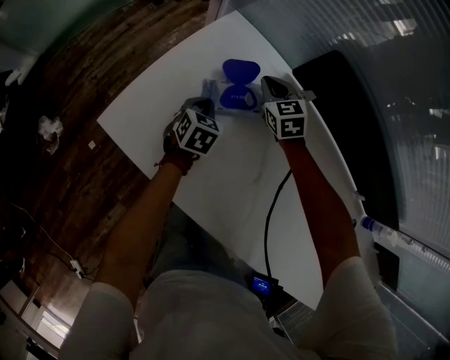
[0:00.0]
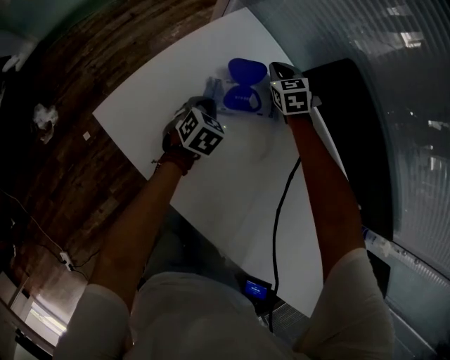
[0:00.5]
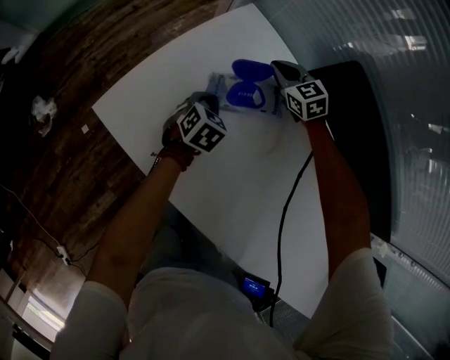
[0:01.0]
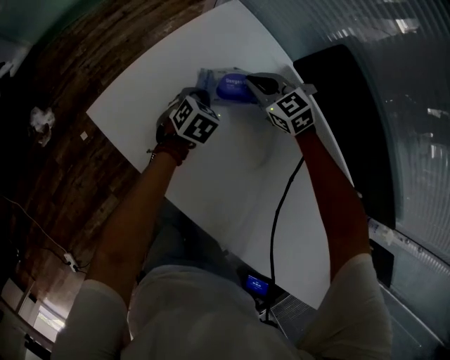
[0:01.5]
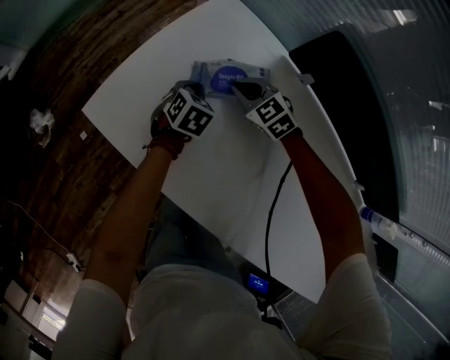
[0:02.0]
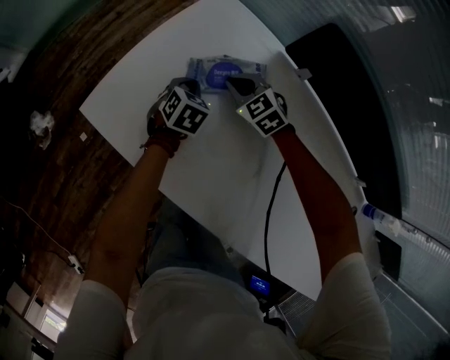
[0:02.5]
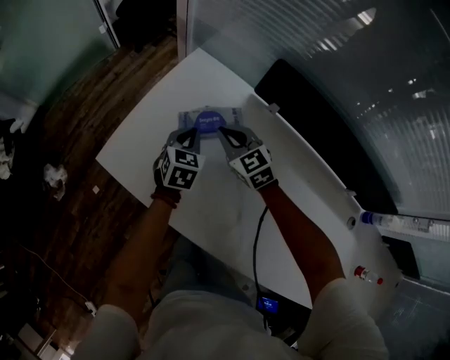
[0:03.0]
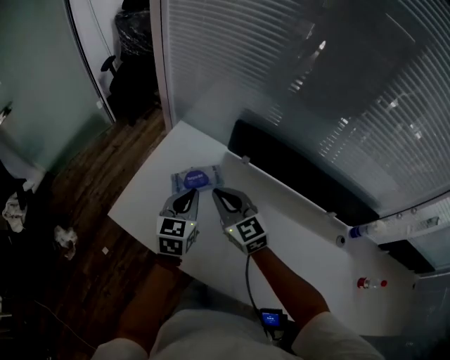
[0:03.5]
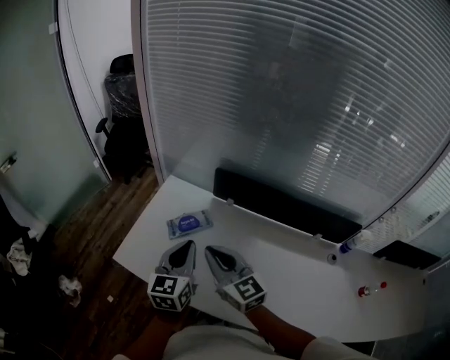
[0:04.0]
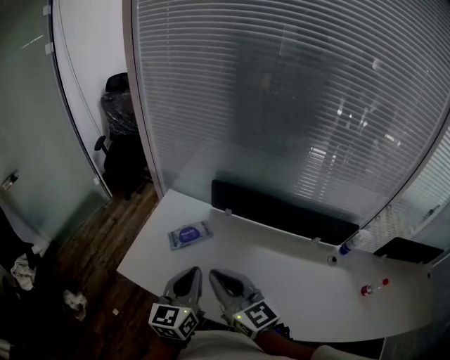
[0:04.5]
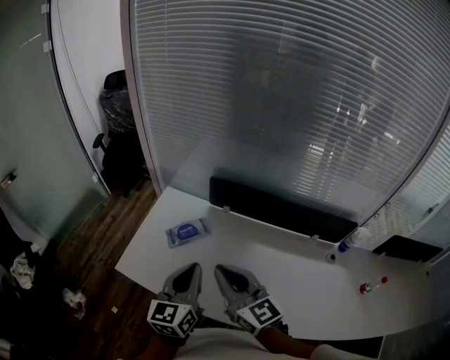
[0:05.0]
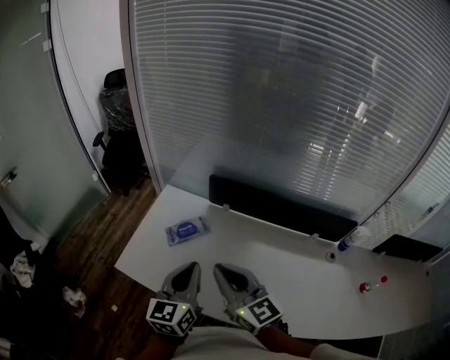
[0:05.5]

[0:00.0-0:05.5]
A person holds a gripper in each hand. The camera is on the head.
0:00.0 to 0:02.0: The right gripper shifts roughly 10 cm backward and to the left, and rotates roughly 30 degrees.
0:02.0 to 0:03.5: The right gripper is displaced upward and backward by roughly 30 cm, and changes its angle by some 40 degrees. The left gripper goes some 30 cm upward, and tips its fingers upward by roughly 30 degrees.
0:03.5 to 0:05.5: The two grippers go approximately 25 cm backward and upward. The right gripper rotates some 20 degrees.

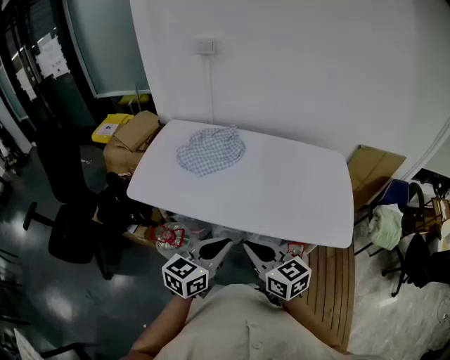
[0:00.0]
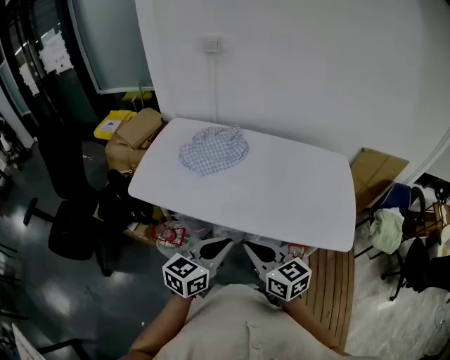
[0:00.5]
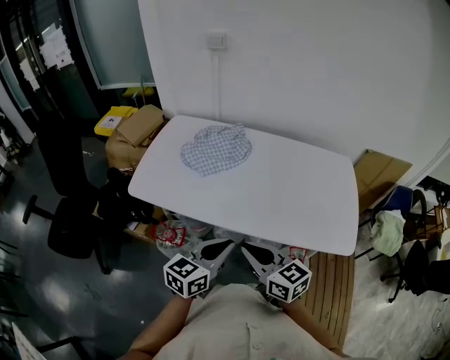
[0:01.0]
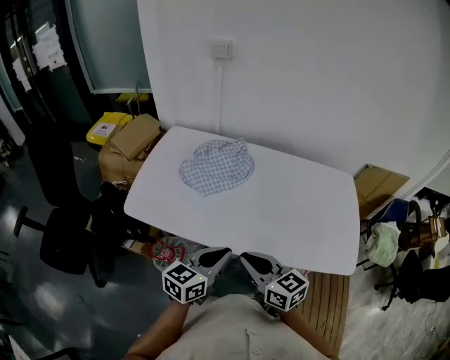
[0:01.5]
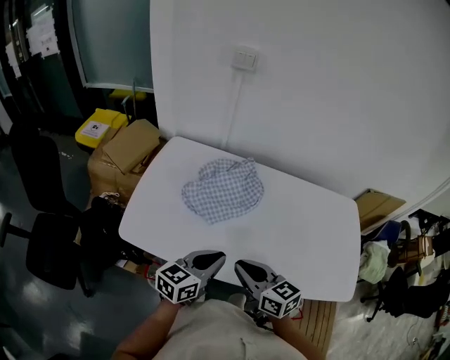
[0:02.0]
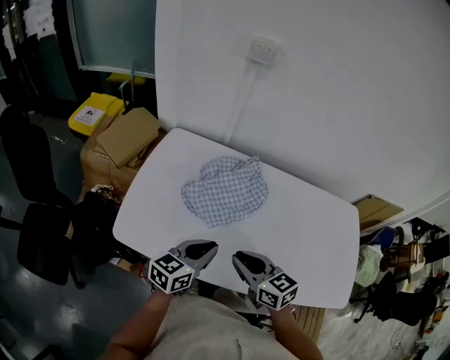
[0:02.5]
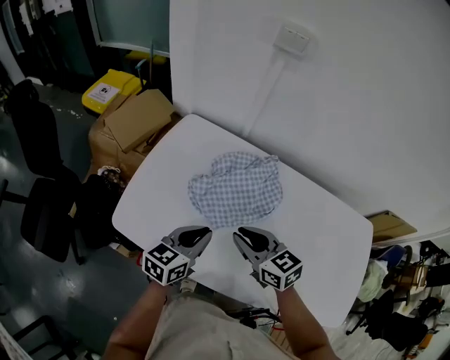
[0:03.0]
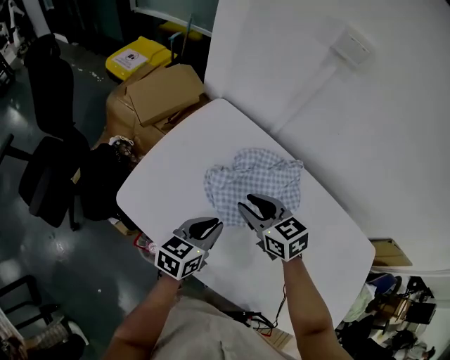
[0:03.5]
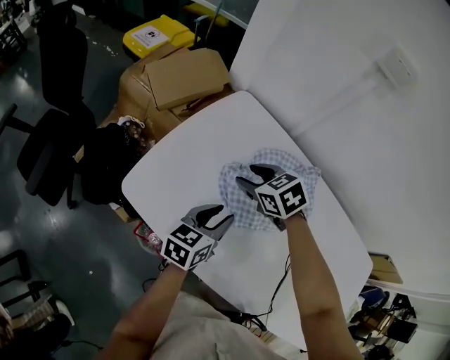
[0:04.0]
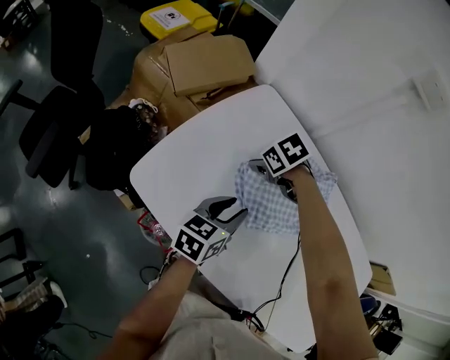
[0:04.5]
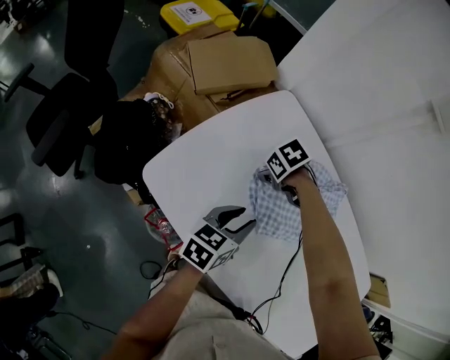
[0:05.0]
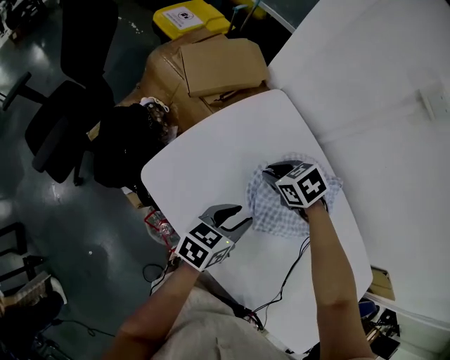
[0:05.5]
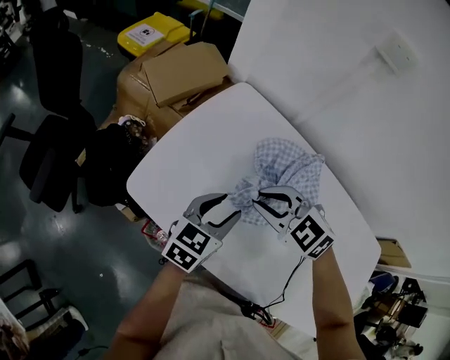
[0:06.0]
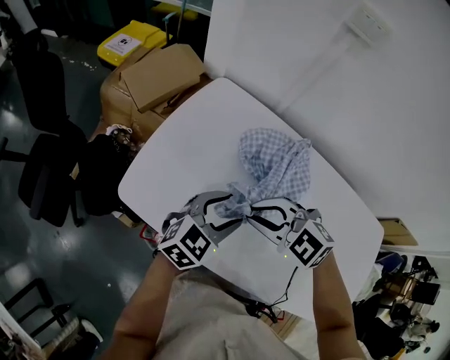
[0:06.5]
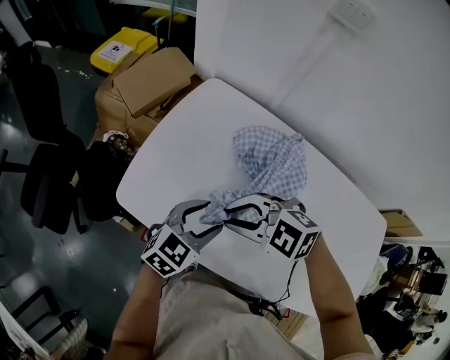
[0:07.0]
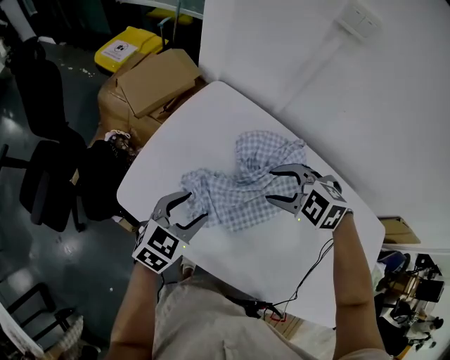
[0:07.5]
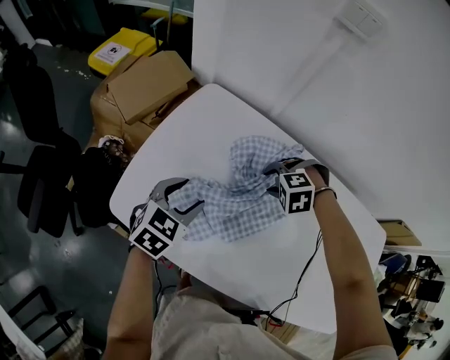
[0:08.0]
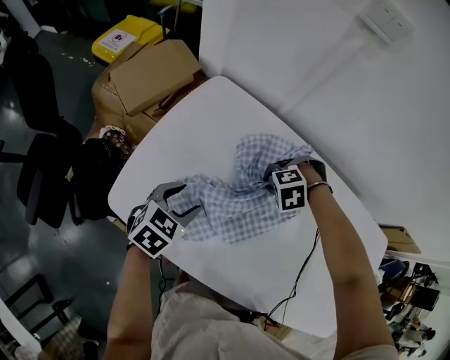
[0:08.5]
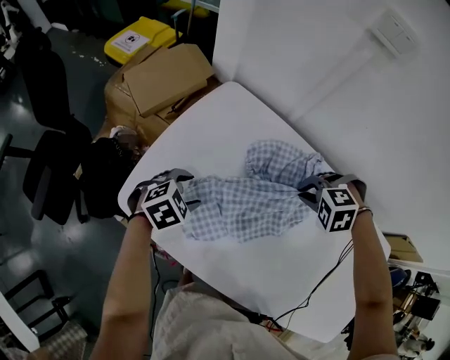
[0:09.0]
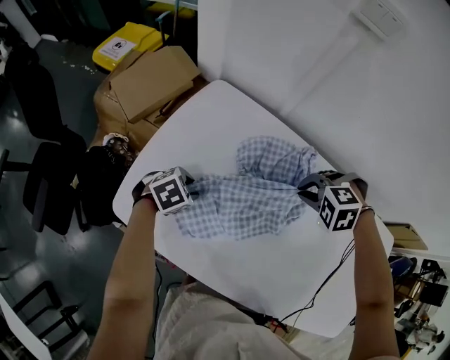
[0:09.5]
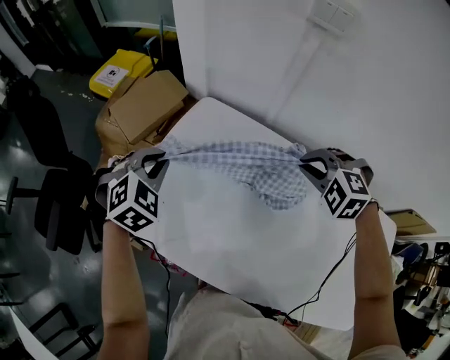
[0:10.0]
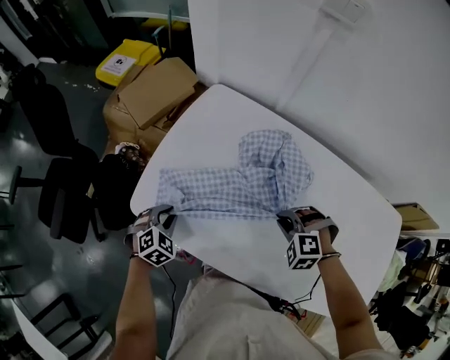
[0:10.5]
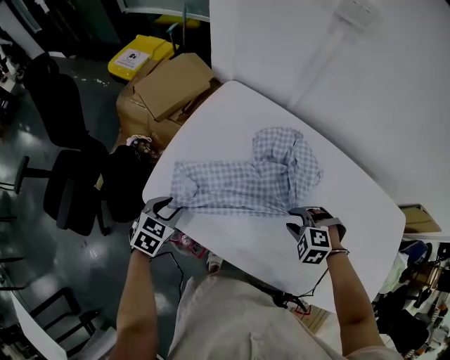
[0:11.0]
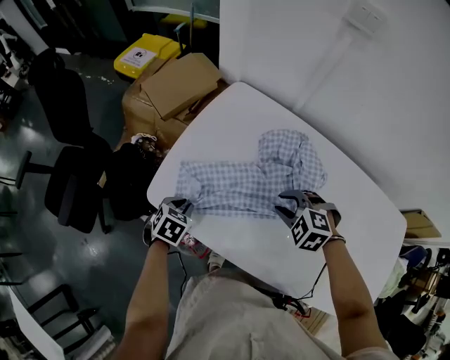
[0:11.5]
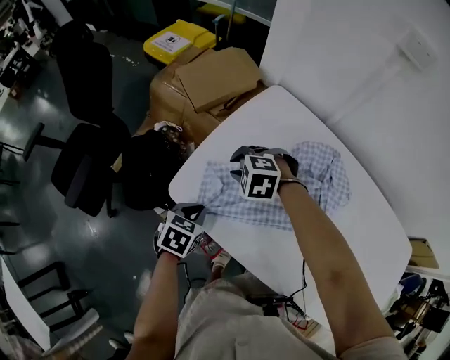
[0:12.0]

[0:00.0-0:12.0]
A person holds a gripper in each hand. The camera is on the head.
0:00.0 to 0:02.0: The grippers both shift forward and to the left by roughly 25 cm.
0:02.0 to 0:04.0: The left gripper shifts by some 25 cm, turns by roughly 30 degrees, and opens, while the right gripper ends up some 40 cm from where it was, tilts its fingers roughly 30 degrees downward, and opens.
0:04.0 to 0:06.0: The right gripper ends up about 10 cm from where it was, rotates approximately 30 degrees, and closes up.
0:06.0 to 0:08.0: The left gripper moves some 5 cm, and rotates roughly 20 degrees. The right gripper shifts by about 20 cm, points its fingers roughly 40 degrees further downward, and opens up.
0:08.0 to 0:10.0: The left gripper moves roughly 15 cm, swivels some 30 degrees, and closes; the right gripper moves upward, about 15 cm, changes its angle by about 30 degrees, and closes its fingers.
0:10.0 to 0:12.0: The right gripper shifts some 35 cm to the left, and changes its angle by approximately 20 degrees; the left gripper moves backward, downward and to the left, approximately 25 cm, rolls counterclockwise, seen from behind, by some 50 degrees, and opens and closes again.

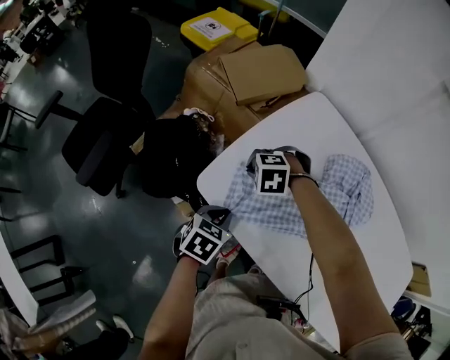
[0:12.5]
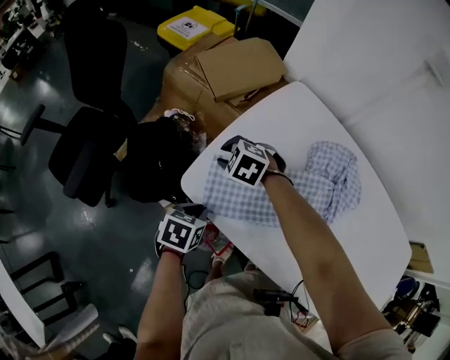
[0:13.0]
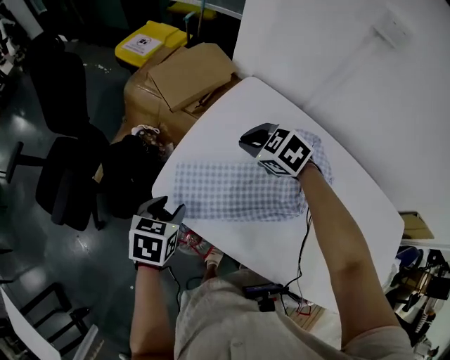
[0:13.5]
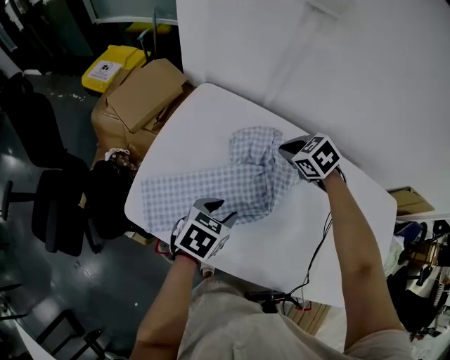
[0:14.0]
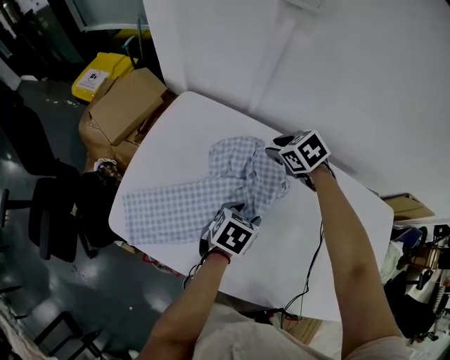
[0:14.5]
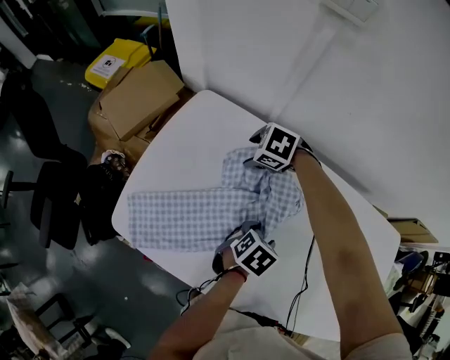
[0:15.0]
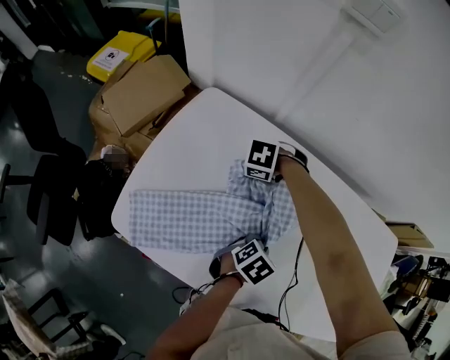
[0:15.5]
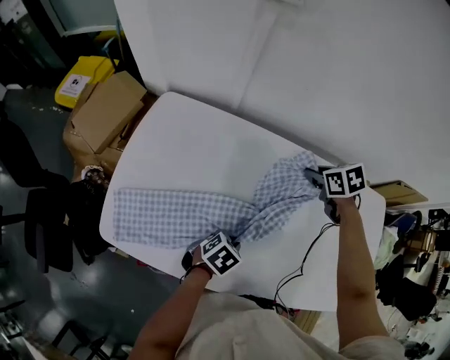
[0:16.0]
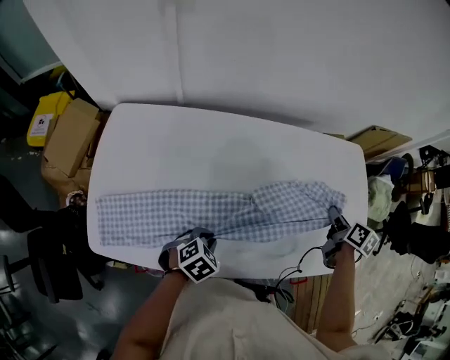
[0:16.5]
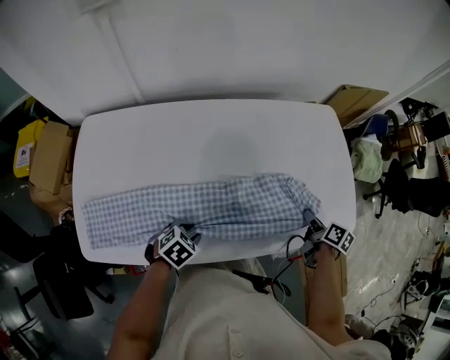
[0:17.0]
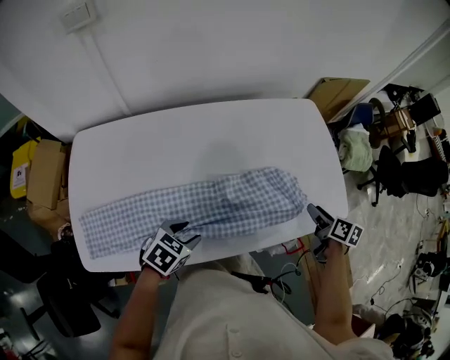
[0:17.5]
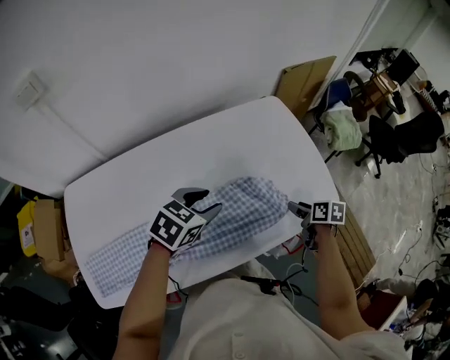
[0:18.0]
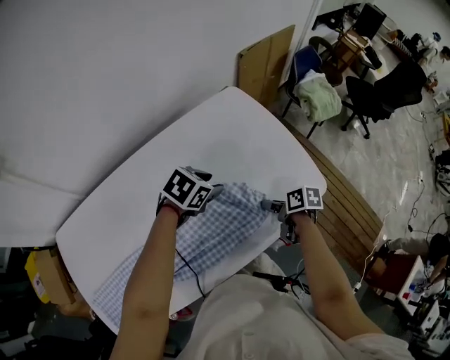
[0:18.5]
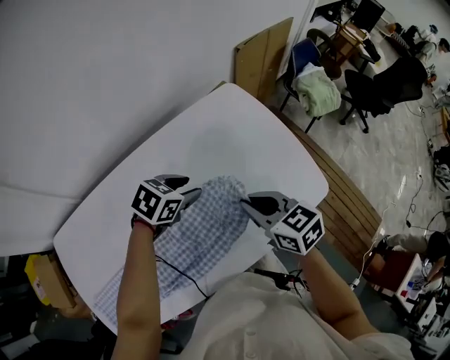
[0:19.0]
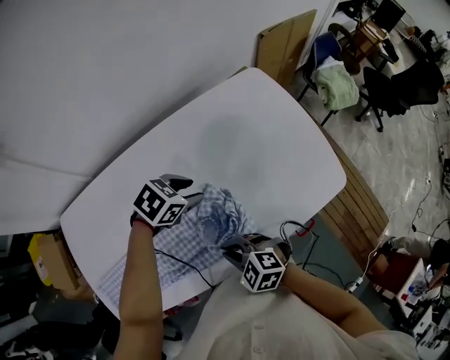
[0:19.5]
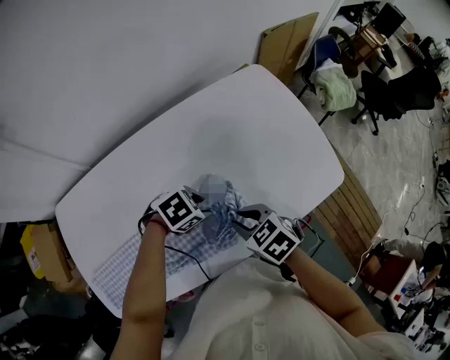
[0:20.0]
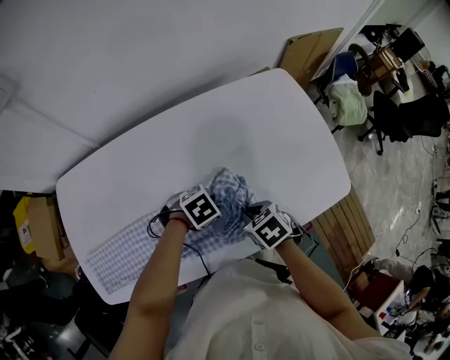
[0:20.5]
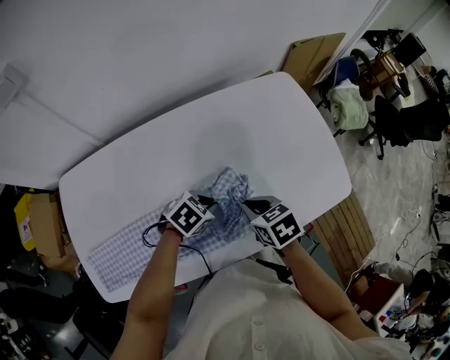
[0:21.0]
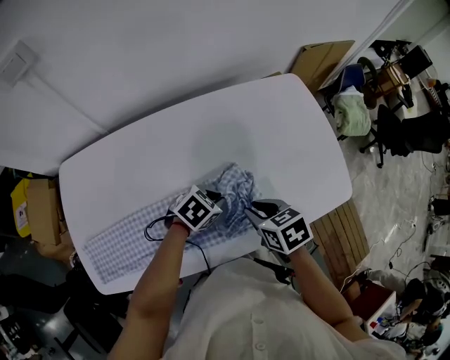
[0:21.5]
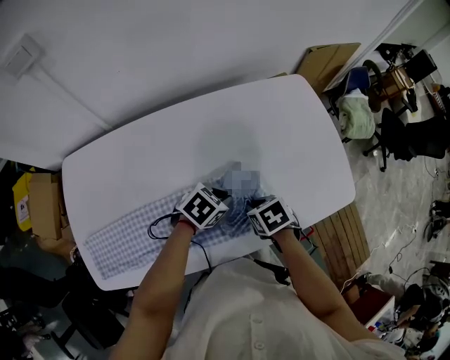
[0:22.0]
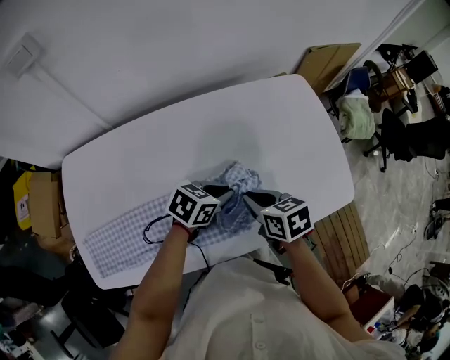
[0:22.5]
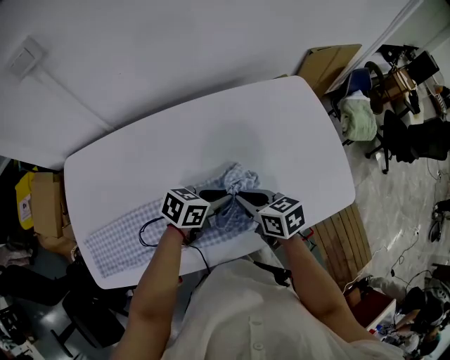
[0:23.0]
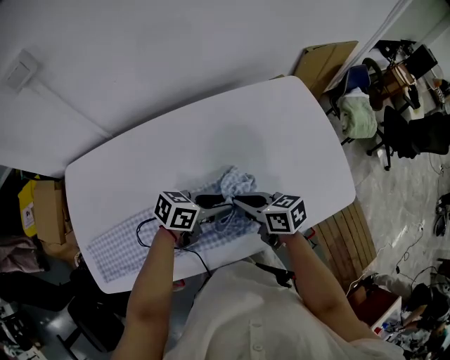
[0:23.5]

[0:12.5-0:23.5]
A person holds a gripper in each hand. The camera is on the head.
0:12.5 to 0:14.5: The right gripper ends up roughly 50 cm from where it was, rolls clockwise, seen from behind, by approximately 70 degrees, and opens up; the left gripper ends up some 40 cm from where it was, changes its angle by some 30 degrees, and opens.
0:14.5 to 0:16.0: The left gripper shifts by about 10 cm, rotates roughly 30 degrees, and closes up, while the right gripper moves about 10 cm downward and comes back, swivels about 30 degrees, and closes its fingers.
0:16.0 to 0:18.0: The left gripper changes place by roughly 30 cm, swivels some 40 degrees, and opens up; the right gripper swings up and down, about 5 cm each way, with 2 reversals, twists some 70 degrees clockwise, seen from behind, and opens its fingers.
0:18.0 to 0:20.0: The right gripper swings up and down, roughly 15 cm each way, with 2 reversals, rolls counterclockwise, seen from behind, by about 50 degrees, and closes up. Meanwhile the left gripper travels downward by about 15 cm, and rotates about 40 degrees.
0:20.0 to 0:21.5: The left gripper swivels about 20 degrees, and closes.
0:21.5 to 0:23.5: The right gripper travels downward and back again, approximately 5 cm each way, and rotates roughly 30 degrees. The left gripper shifts approximately 5 cm upward, angles its fingers upward, by approximately 30 degrees, and opens its fingers.
